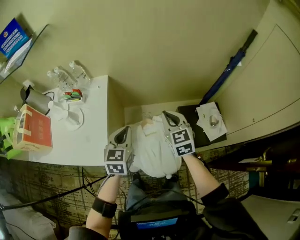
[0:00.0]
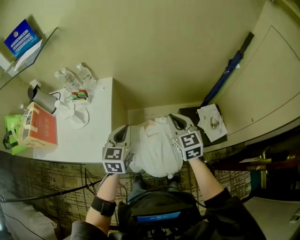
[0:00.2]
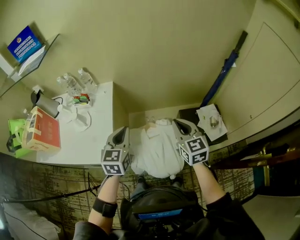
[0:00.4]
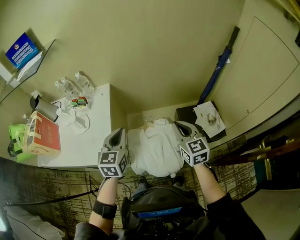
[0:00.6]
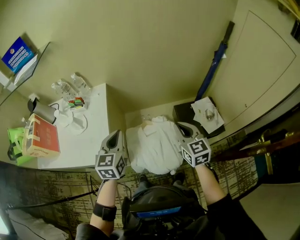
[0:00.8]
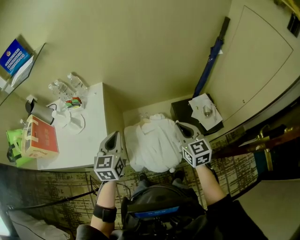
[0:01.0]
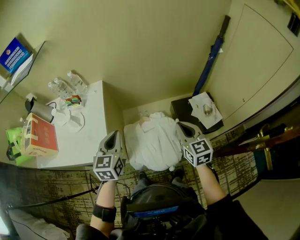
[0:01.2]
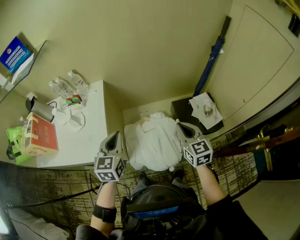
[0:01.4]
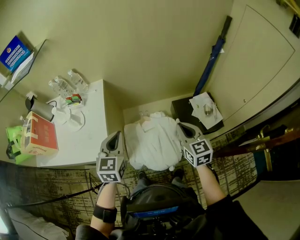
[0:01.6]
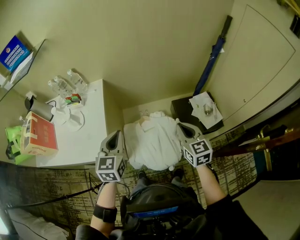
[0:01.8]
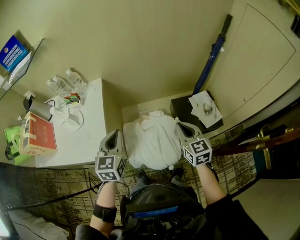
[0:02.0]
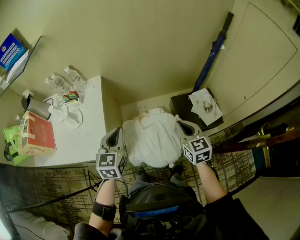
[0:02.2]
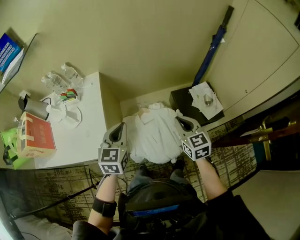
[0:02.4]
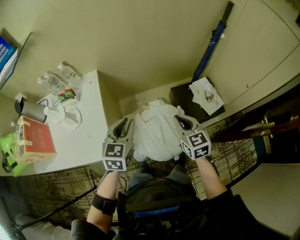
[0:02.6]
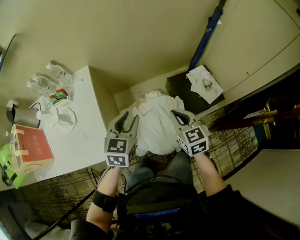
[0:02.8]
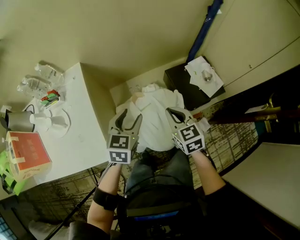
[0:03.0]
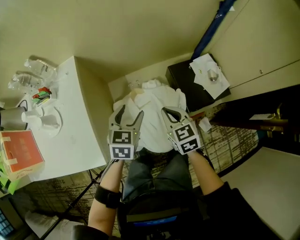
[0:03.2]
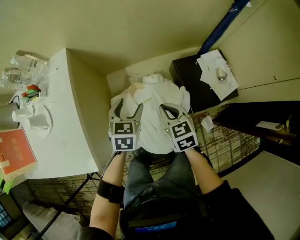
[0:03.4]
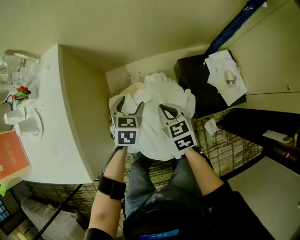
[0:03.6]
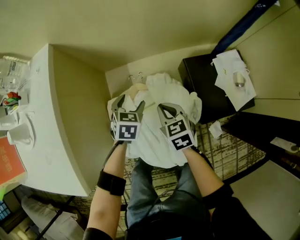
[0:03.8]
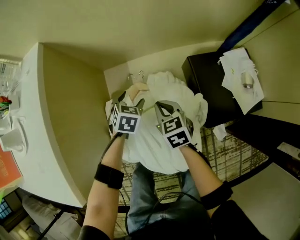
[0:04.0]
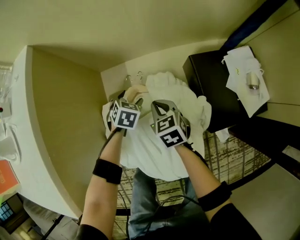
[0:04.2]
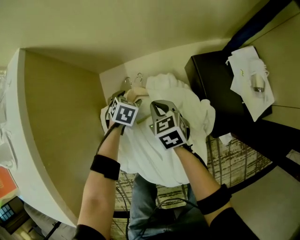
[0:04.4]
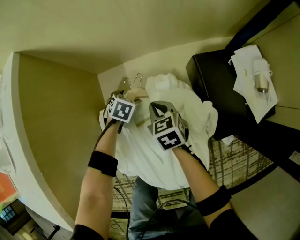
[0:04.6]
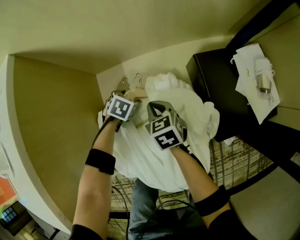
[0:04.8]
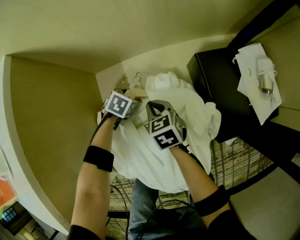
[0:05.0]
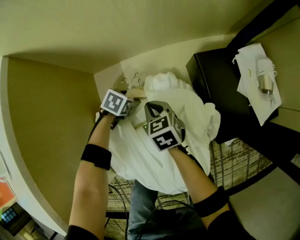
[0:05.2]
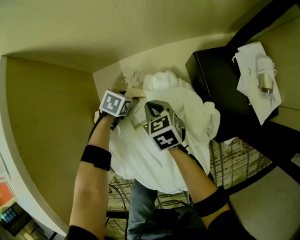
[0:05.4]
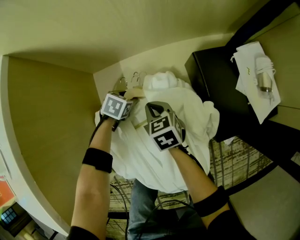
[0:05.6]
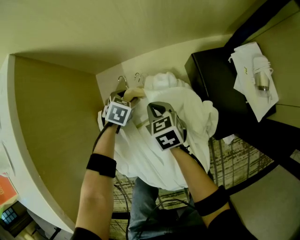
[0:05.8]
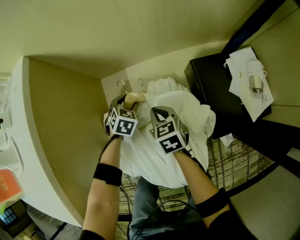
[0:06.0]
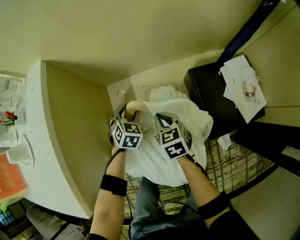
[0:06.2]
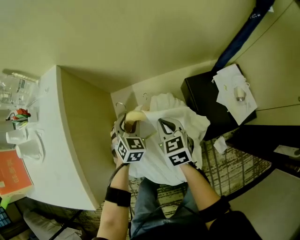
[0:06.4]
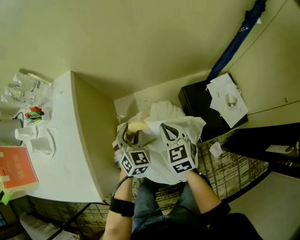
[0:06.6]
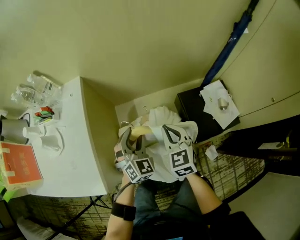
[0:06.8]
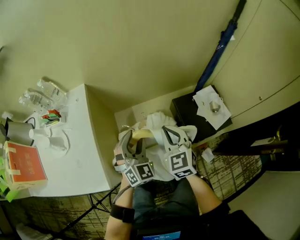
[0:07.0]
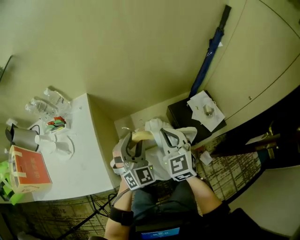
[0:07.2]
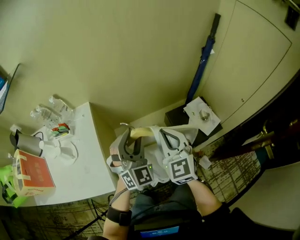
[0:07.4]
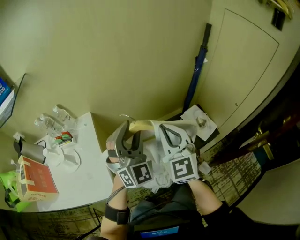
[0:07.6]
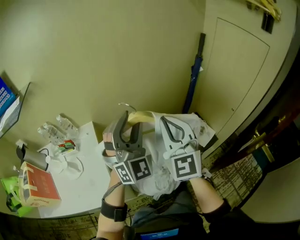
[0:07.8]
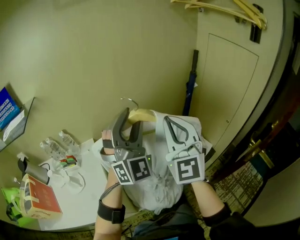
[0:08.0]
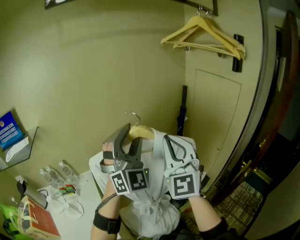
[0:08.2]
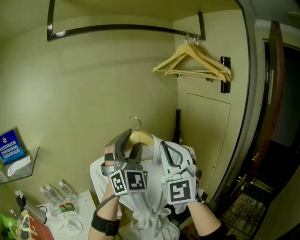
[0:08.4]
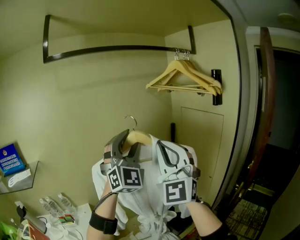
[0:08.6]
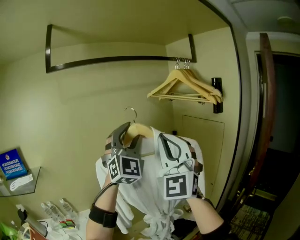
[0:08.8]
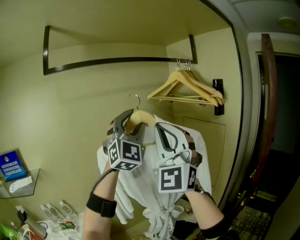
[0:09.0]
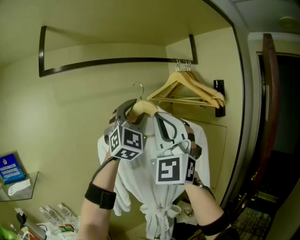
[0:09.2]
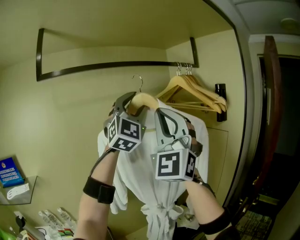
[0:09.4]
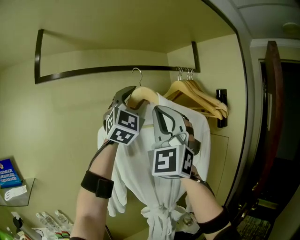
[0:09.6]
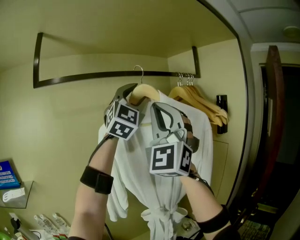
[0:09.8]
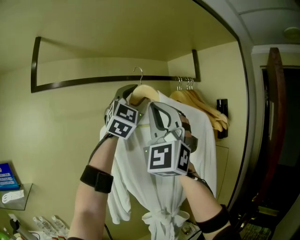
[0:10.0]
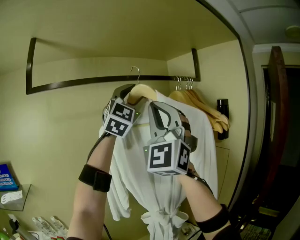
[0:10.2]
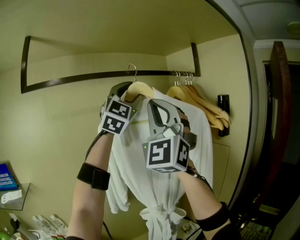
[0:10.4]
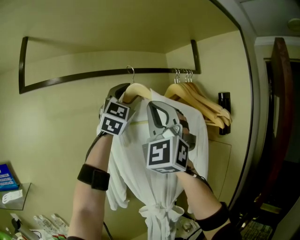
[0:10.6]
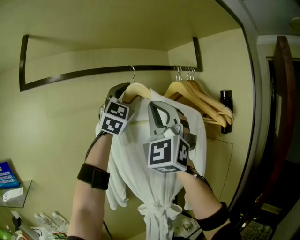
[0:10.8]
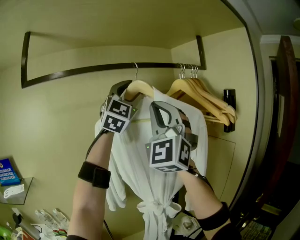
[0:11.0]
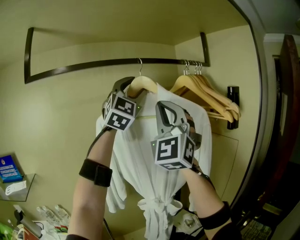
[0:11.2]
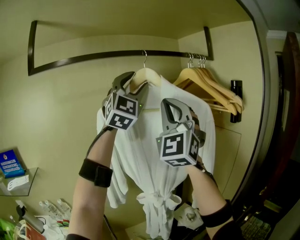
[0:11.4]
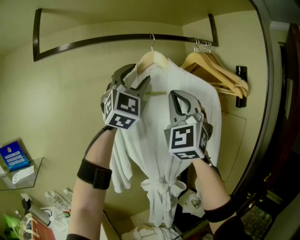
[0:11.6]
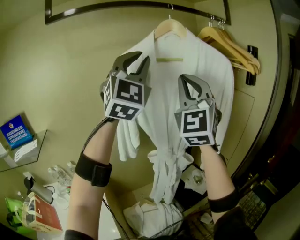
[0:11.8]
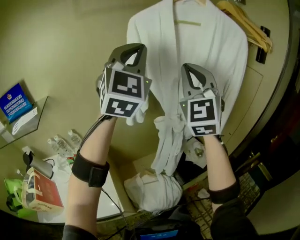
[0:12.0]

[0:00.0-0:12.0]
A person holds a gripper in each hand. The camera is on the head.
0:00.0 to 0:01.6: The left gripper is displaced backward and upward by approximately 10 cm. Meanwhile the right gripper goes about 15 cm backward and to the right.
0:01.6 to 0:03.0: The right gripper heads downward and to the left, covering roughly 15 cm. Meanwhile the left gripper travels downward and forward by some 15 cm, changes its angle by about 20 degrees, and opens.
0:03.0 to 0:04.4: Both grippers travel together downward and forward, some 50 cm. The left gripper angles its fingers downward, by roughly 30 degrees.
0:04.4 to 0:06.0: The left gripper travels downward and back again, about 5 cm each way.
0:06.0 to 0:07.6: The grippers both shift upward by roughly 60 cm. The left gripper tips its fingers upward by approximately 60 degrees, while the right gripper tips its fingers upward by approximately 40 degrees.
0:07.6 to 0:09.0: Both grippers travel together upward, approximately 50 cm. The right gripper tilts its fingers roughly 40 degrees upward, while the left gripper rotates approximately 40 degrees.
0:09.0 to 0:10.4: Both grippers move upward and forward, about 20 cm.
0:10.4 to 0:12.0: The left gripper moves downward, backward and to the left, approximately 30 cm, and closes up. The right gripper moves downward, about 25 cm, and rotates some 30 degrees.

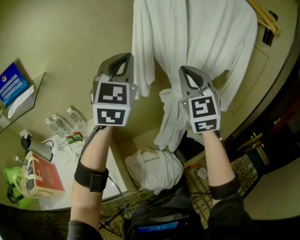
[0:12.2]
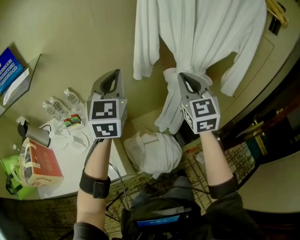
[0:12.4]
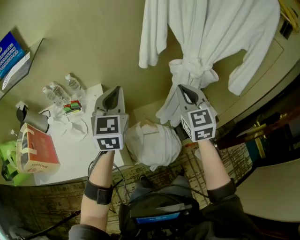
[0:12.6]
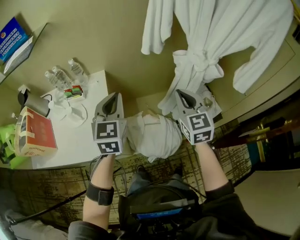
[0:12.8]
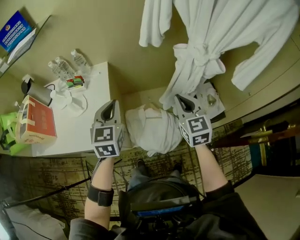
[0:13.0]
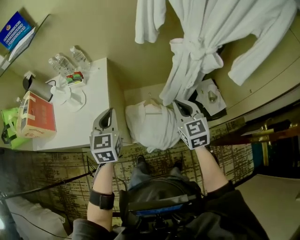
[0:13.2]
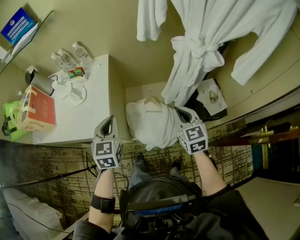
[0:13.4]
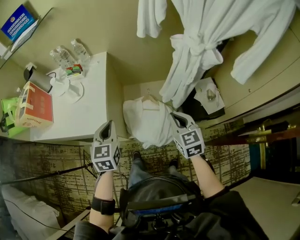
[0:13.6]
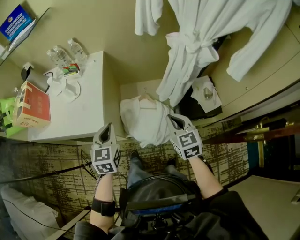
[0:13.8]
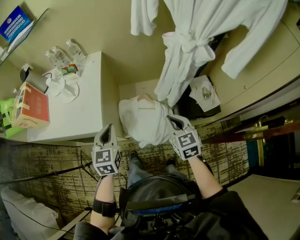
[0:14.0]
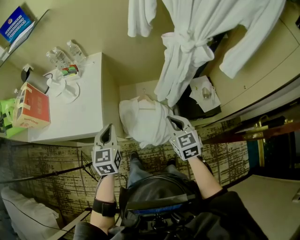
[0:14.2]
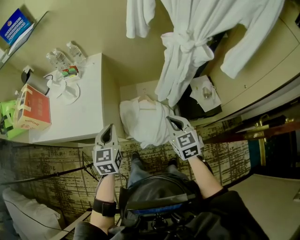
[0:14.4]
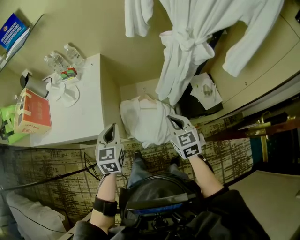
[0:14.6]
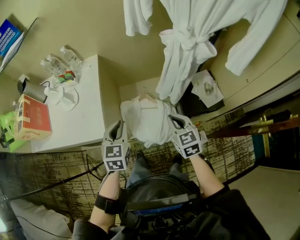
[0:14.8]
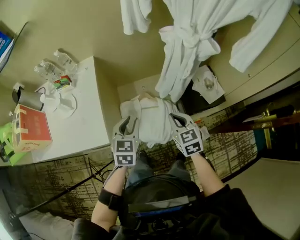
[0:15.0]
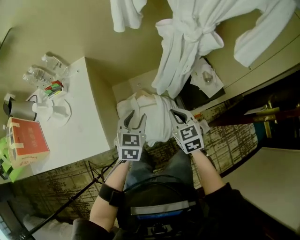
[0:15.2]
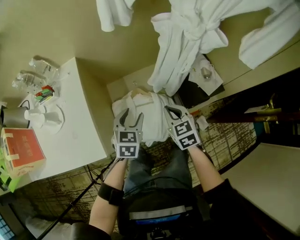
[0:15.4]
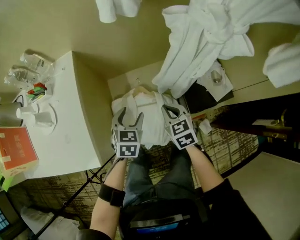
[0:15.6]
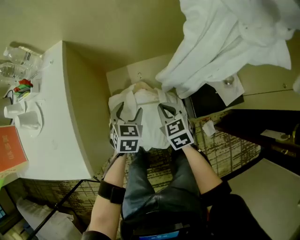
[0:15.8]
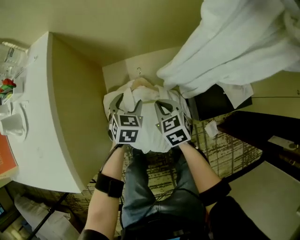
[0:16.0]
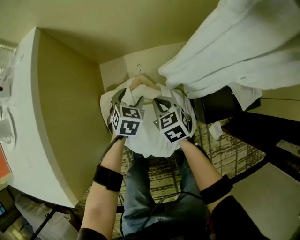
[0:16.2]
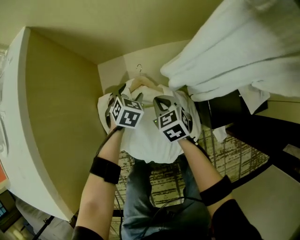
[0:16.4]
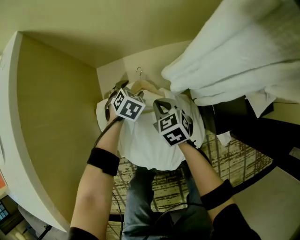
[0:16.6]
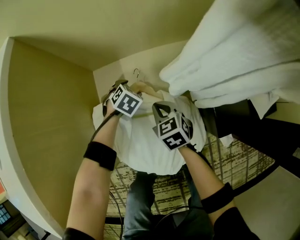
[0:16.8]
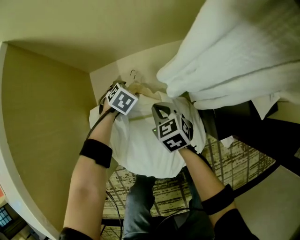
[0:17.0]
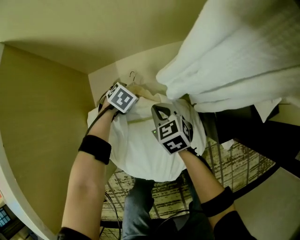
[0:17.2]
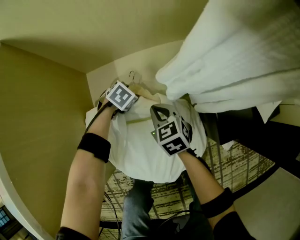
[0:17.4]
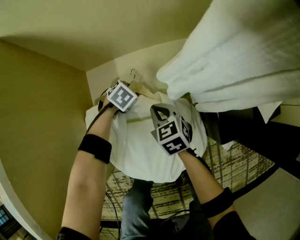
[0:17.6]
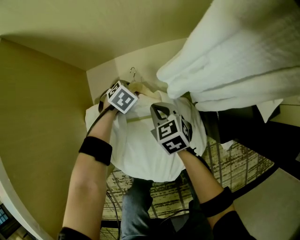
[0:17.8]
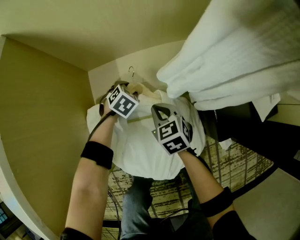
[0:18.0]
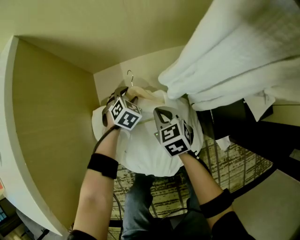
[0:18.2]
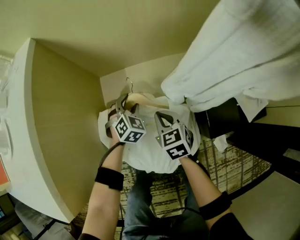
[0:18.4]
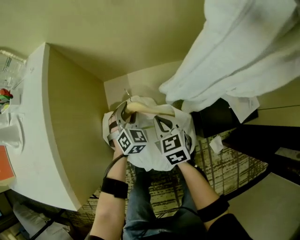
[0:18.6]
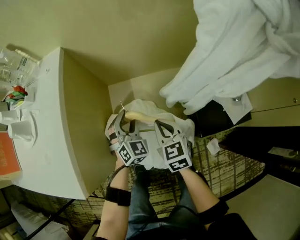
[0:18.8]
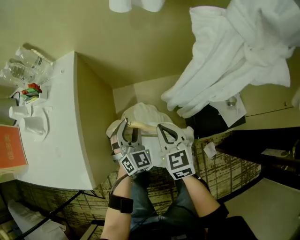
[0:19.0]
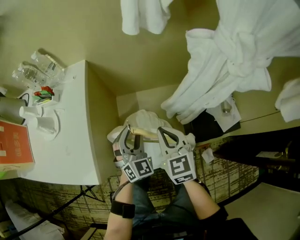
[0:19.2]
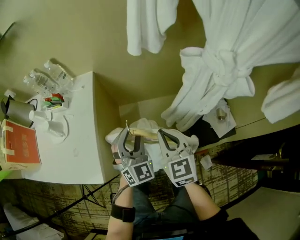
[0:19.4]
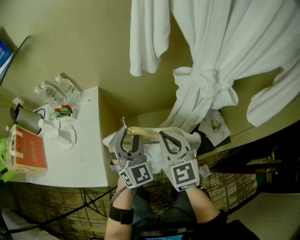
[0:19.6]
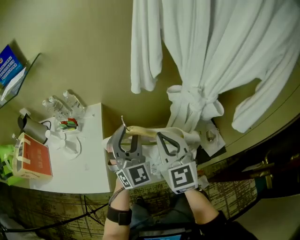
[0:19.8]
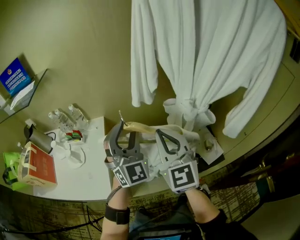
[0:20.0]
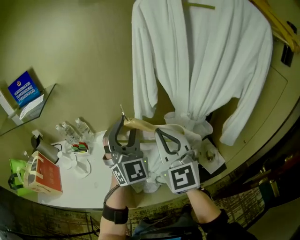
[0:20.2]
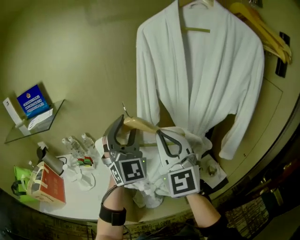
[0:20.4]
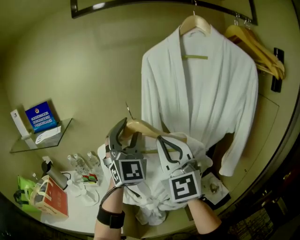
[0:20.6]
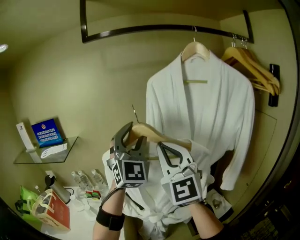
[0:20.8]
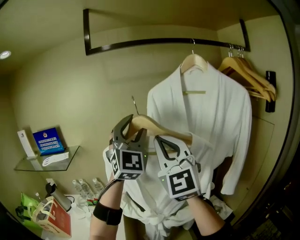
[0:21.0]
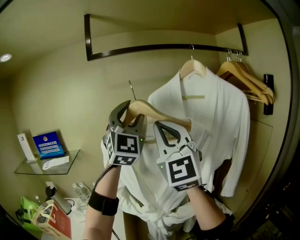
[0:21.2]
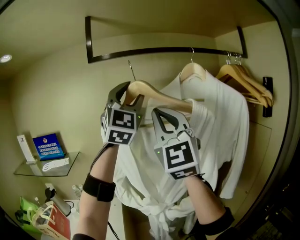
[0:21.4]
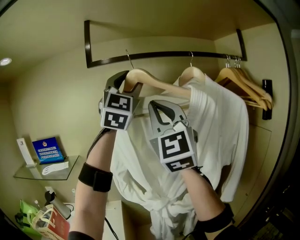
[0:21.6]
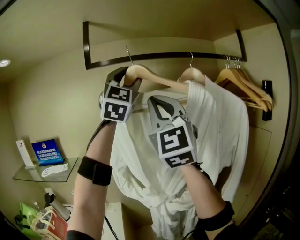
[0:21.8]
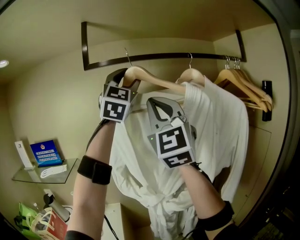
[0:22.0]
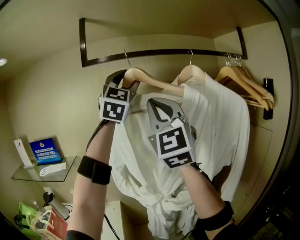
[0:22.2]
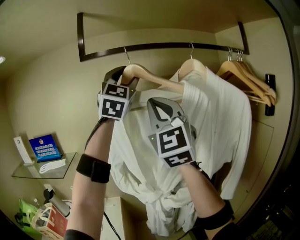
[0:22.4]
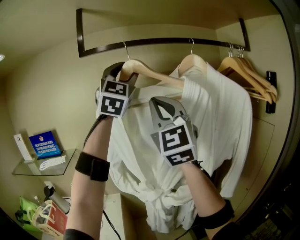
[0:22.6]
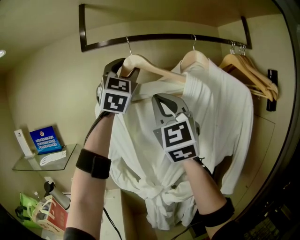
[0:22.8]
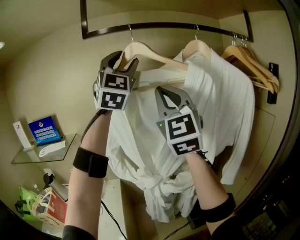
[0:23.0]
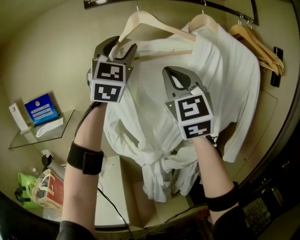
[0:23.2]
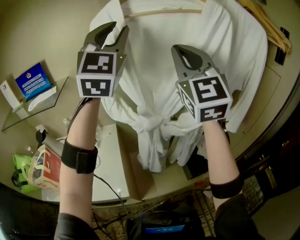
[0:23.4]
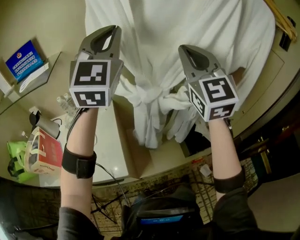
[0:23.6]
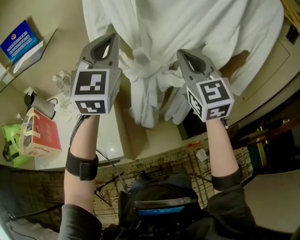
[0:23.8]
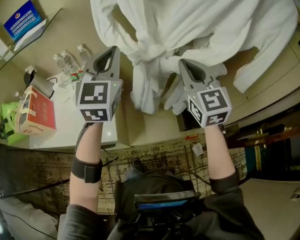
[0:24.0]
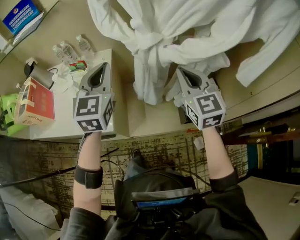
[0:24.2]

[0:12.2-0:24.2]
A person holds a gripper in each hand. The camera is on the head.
0:12.2 to 0:13.8: The two grippers go some 40 cm downward. The left gripper tilts its fingers about 30 degrees downward. Meanwhile the right gripper angles its fingers downward, by some 30 degrees.
0:13.8 to 0:15.2: The left gripper travels to the right, forward and downward by roughly 15 cm, changes its angle by about 30 degrees, and opens its fingers. Meanwhile the right gripper moves downward and forward, some 10 cm.
0:15.2 to 0:16.6: The two grippers go roughly 50 cm downward and forward. The left gripper changes its angle by approximately 30 degrees, and opens.
0:16.6 to 0:18.2: The left gripper reaches approximately 10 cm downward, then returns.
0:18.2 to 0:19.8: The grippers both shift upward by some 70 cm. The right gripper tips its fingers upward by about 40 degrees; the left gripper angles its fingers upward, by approximately 60 degrees.
0:19.8 to 0:21.2: The two grippers go about 50 cm upward. The left gripper swivels roughly 30 degrees, while the right gripper tips its fingers upward by some 40 degrees.
0:21.2 to 0:22.6: The left gripper shifts about 15 cm upward and forward. The right gripper heads forward and upward, covering some 10 cm.
0:22.6 to 0:24.2: The two grippers go approximately 50 cm downward. The right gripper angles its fingers downward, by roughly 40 degrees. The left gripper angles its fingers downward, by some 30 degrees, and closes its fingers.
